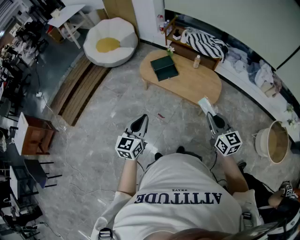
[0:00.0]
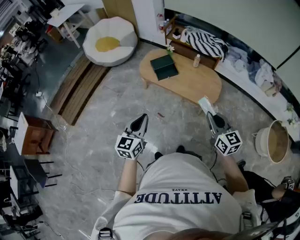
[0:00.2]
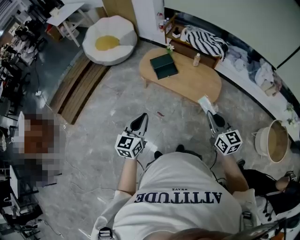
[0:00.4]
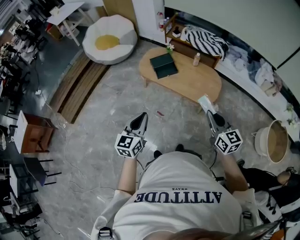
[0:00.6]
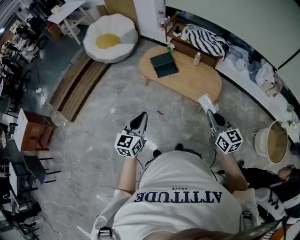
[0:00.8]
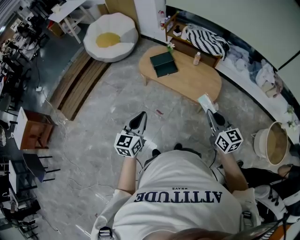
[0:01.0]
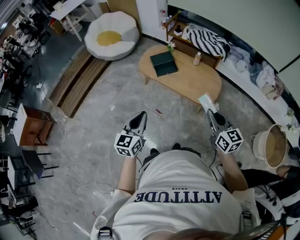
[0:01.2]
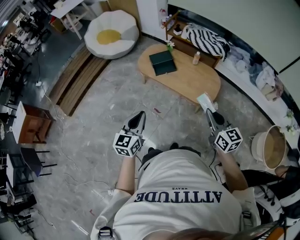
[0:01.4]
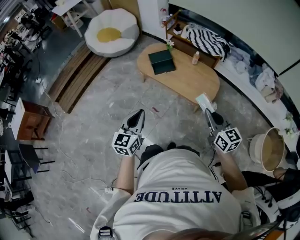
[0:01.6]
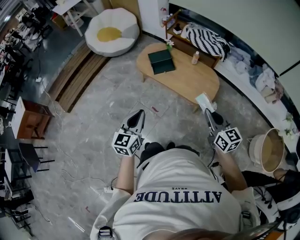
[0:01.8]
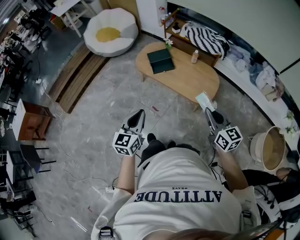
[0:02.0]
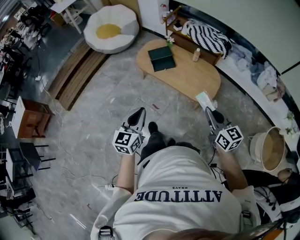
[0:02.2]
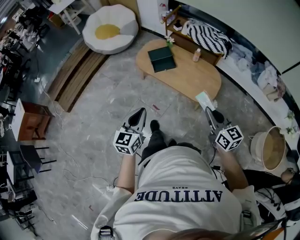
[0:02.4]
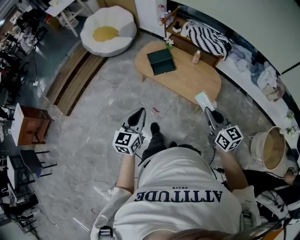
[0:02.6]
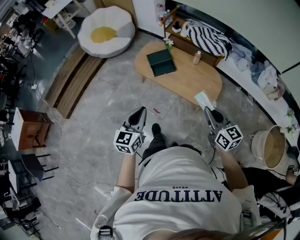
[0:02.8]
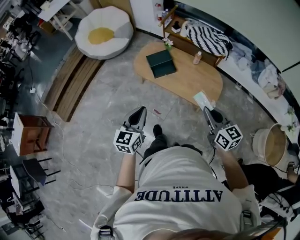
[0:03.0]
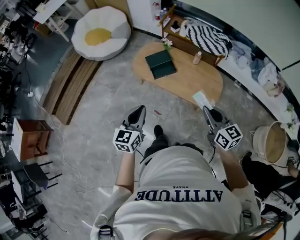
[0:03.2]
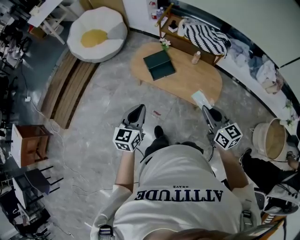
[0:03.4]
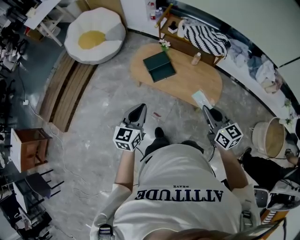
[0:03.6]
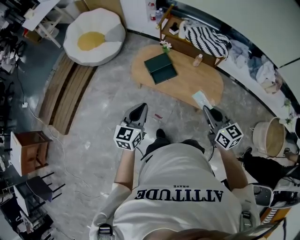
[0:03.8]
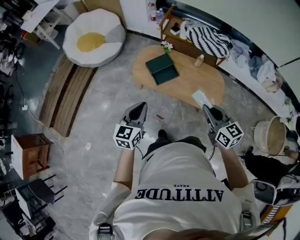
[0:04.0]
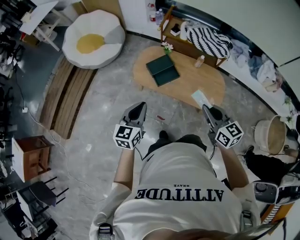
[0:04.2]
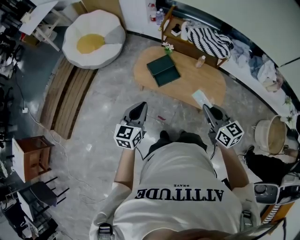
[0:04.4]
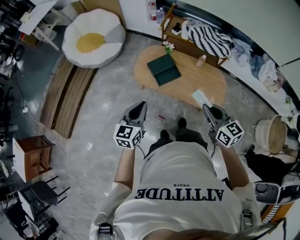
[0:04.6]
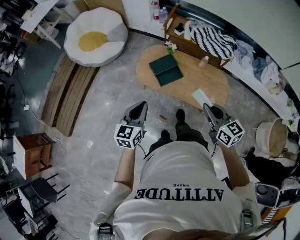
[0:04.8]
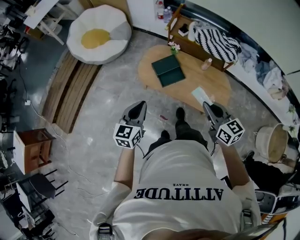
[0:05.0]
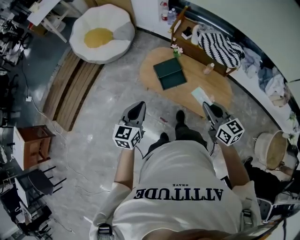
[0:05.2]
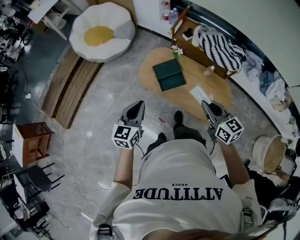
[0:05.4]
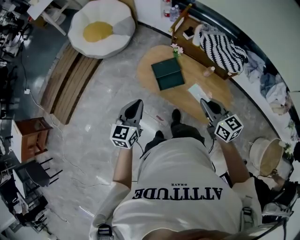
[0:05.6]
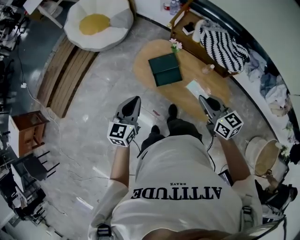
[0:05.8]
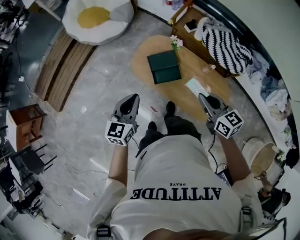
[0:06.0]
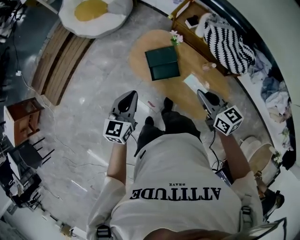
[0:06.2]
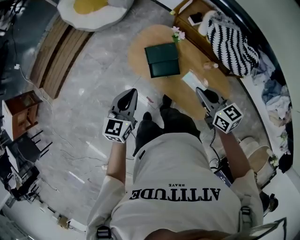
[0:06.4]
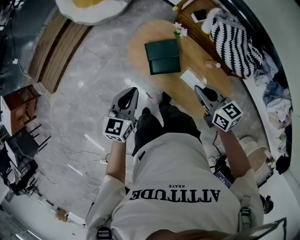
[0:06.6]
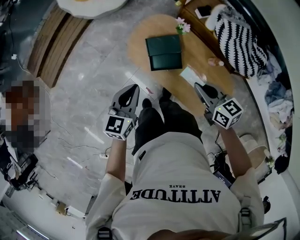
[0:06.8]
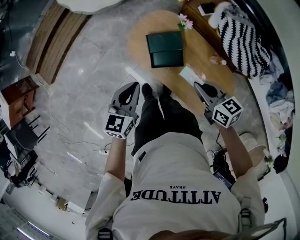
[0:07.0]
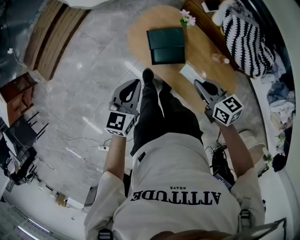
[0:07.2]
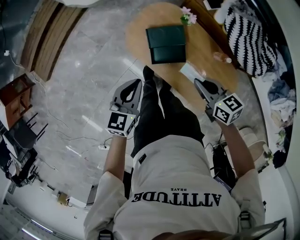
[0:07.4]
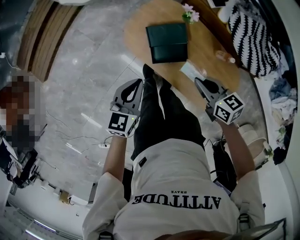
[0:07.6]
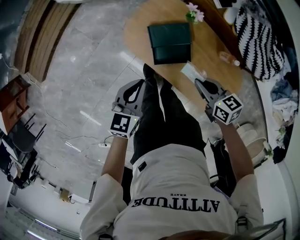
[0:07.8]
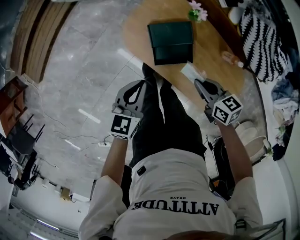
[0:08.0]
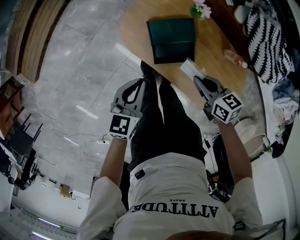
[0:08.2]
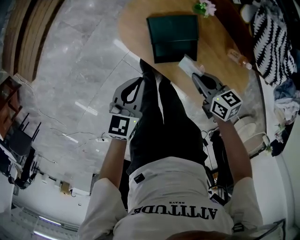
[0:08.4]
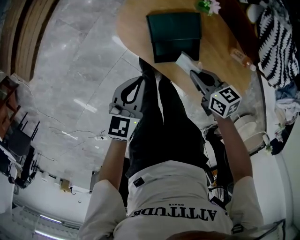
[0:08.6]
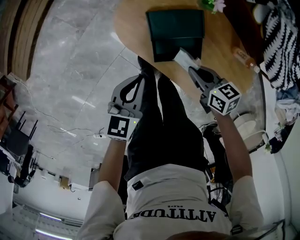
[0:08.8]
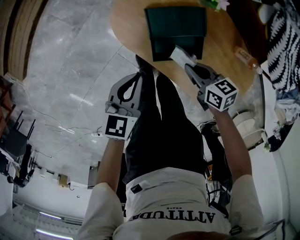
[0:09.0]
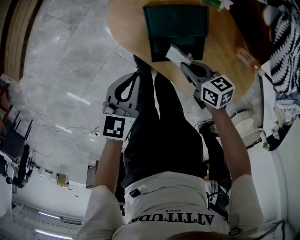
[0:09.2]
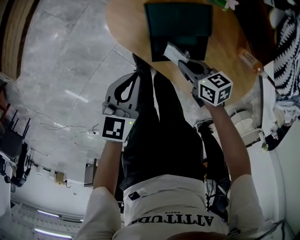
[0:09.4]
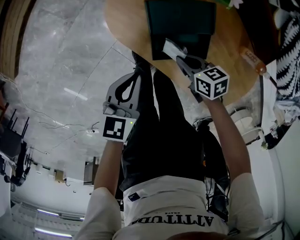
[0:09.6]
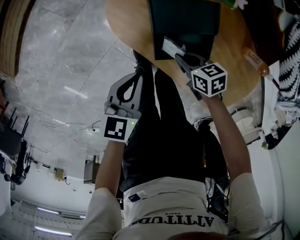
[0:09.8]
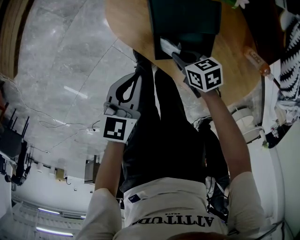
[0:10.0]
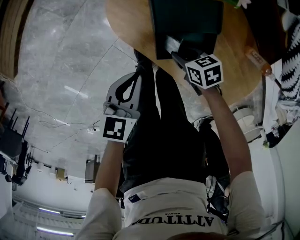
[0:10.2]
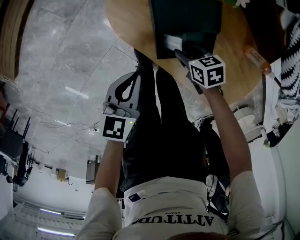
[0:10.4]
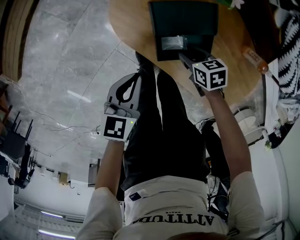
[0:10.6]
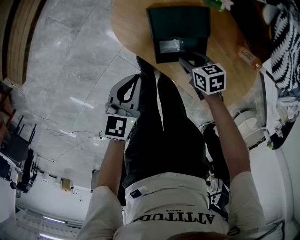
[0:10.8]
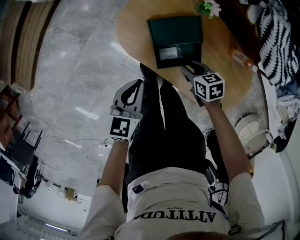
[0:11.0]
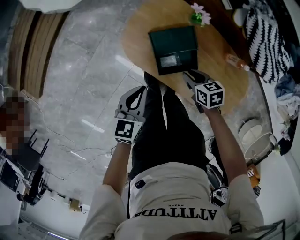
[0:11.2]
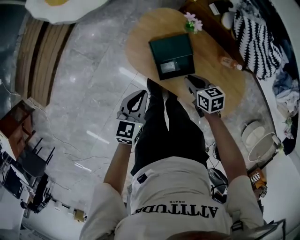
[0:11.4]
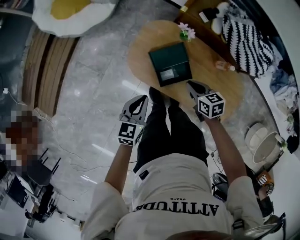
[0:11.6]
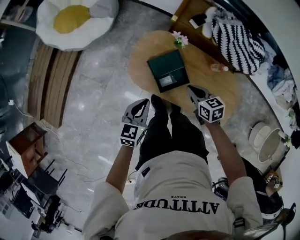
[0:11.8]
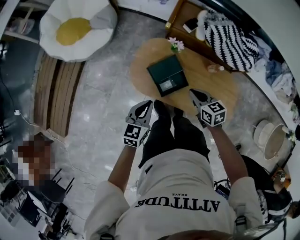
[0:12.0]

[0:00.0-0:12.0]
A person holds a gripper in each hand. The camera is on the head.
0:00.0 to 0:01.6: Both grippers travel together to the right, some 5 cm.
0:01.6 to 0:03.0: The grippers both shift forward by some 15 cm.
0:03.0 to 0:04.4: Both grippers move forward and to the left, roughly 20 cm.
0:04.4 to 0:06.0: The right gripper shifts about 25 cm forward; the left gripper goes approximately 20 cm forward and to the right.
0:06.0 to 0:07.6: The two grippers go roughly 25 cm downward and forward. The right gripper changes its angle by approximately 20 degrees.
0:07.6 to 0:09.0: Both grippers move downward, roughly 25 cm.
0:09.0 to 0:10.4: The right gripper shifts about 15 cm downward, and opens up. Meanwhile the left gripper shifts approximately 5 cm downward.
0:10.4 to 0:12.0: The grippers both shift upward by approximately 35 cm. The right gripper swivels approximately 40 degrees, and closes up. The left gripper swivels some 30 degrees.

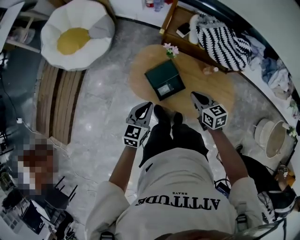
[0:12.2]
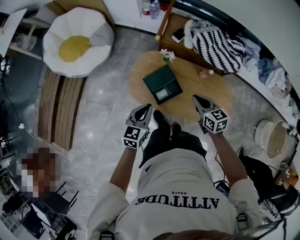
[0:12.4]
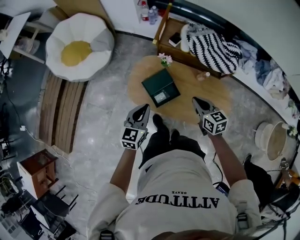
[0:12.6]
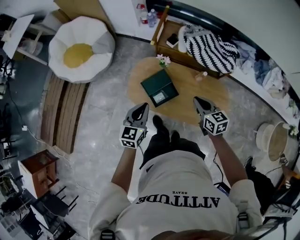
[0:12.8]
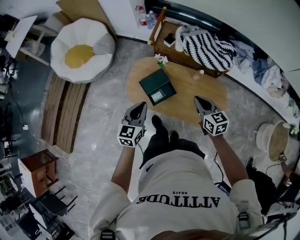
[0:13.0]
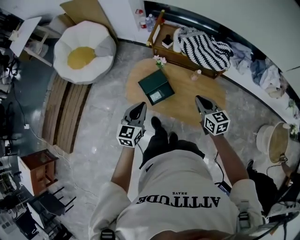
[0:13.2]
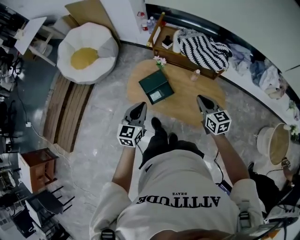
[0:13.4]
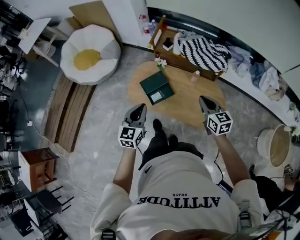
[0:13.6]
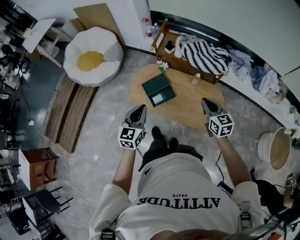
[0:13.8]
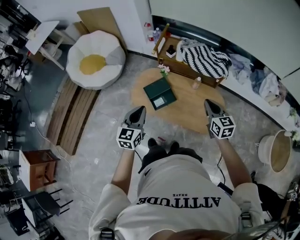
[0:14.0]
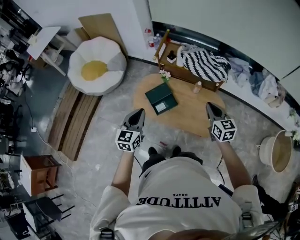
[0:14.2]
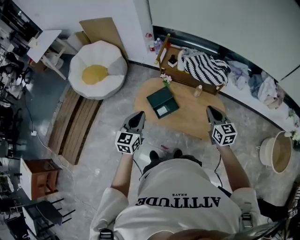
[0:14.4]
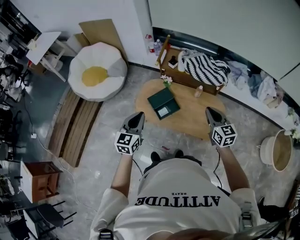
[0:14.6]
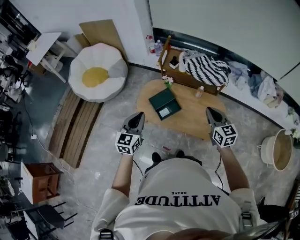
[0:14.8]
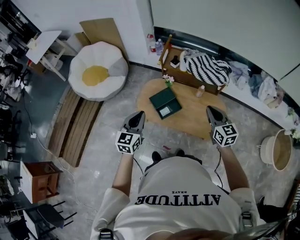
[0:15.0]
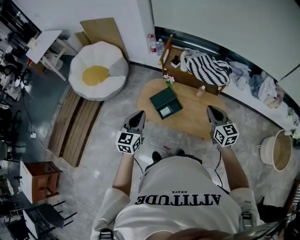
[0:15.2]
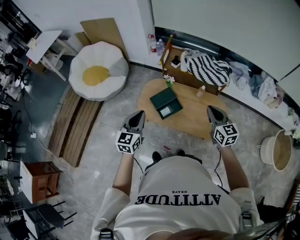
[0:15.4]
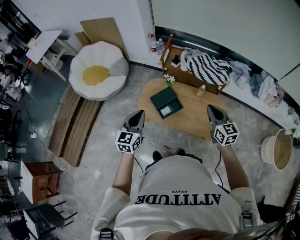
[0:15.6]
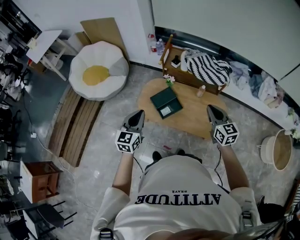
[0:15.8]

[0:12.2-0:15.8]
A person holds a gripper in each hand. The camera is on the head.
0:12.2 to 0:14.0: The right gripper is displaced backward, to the right and upward by about 30 cm, and changes its angle by approximately 20 degrees, while the left gripper goes approximately 25 cm backward and upward.
0:14.0 to 0:15.8: The right gripper moves to the left and upward, roughly 10 cm; the left gripper heads to the left, covering roughly 10 cm.

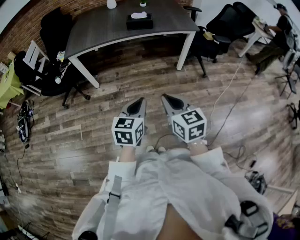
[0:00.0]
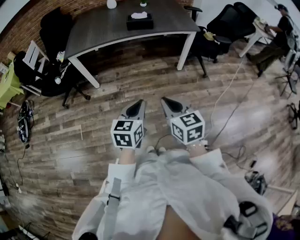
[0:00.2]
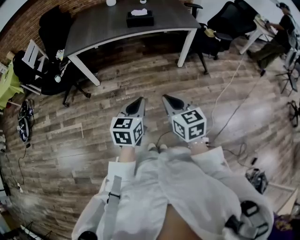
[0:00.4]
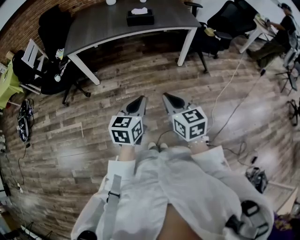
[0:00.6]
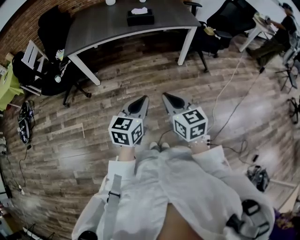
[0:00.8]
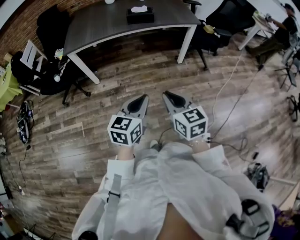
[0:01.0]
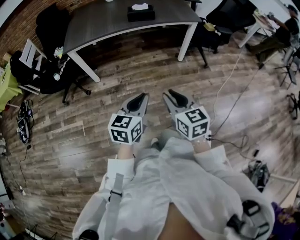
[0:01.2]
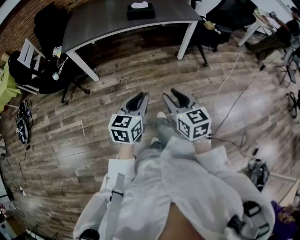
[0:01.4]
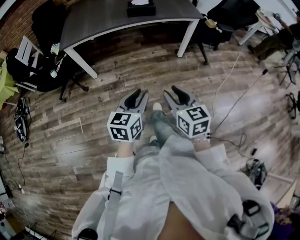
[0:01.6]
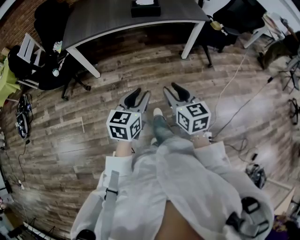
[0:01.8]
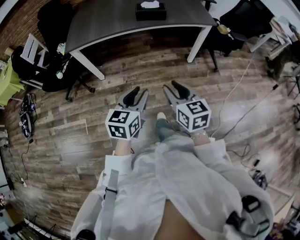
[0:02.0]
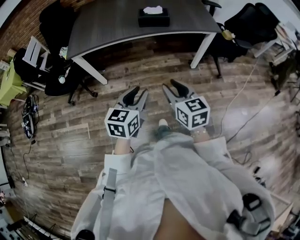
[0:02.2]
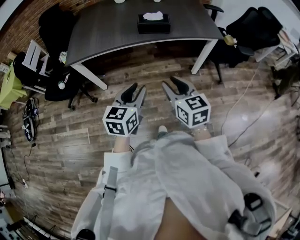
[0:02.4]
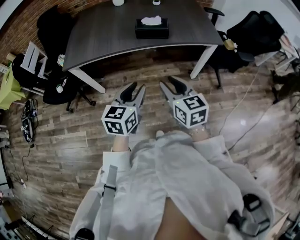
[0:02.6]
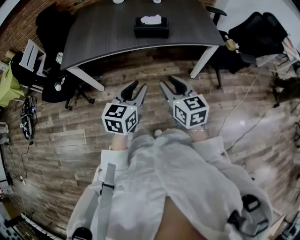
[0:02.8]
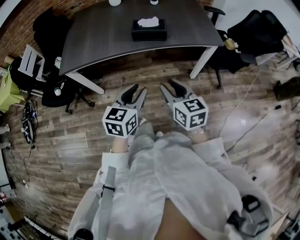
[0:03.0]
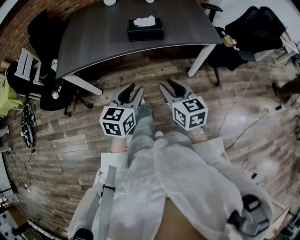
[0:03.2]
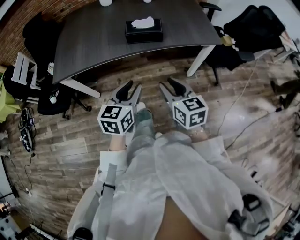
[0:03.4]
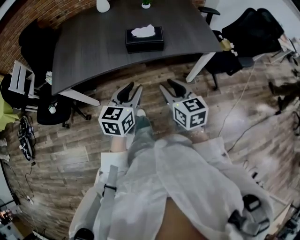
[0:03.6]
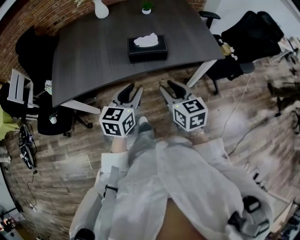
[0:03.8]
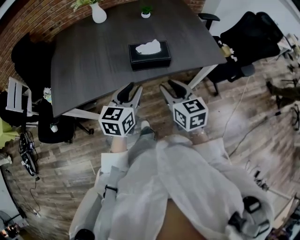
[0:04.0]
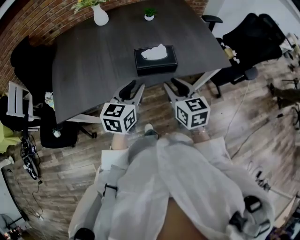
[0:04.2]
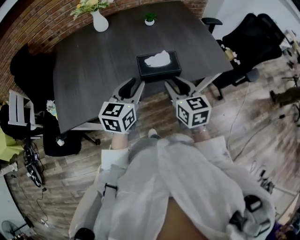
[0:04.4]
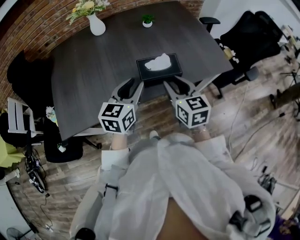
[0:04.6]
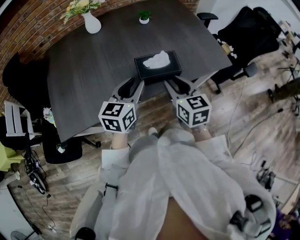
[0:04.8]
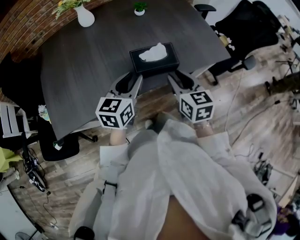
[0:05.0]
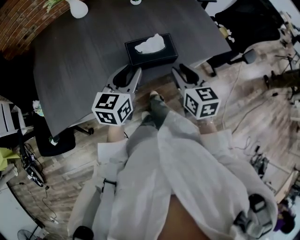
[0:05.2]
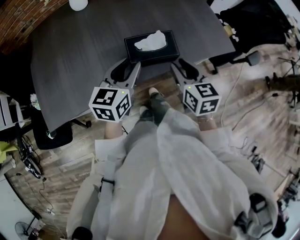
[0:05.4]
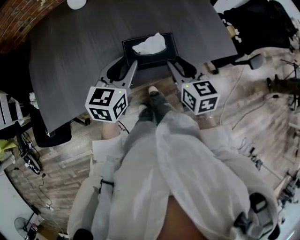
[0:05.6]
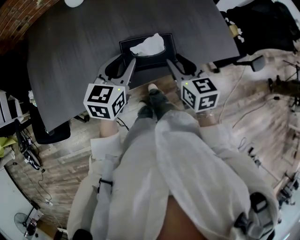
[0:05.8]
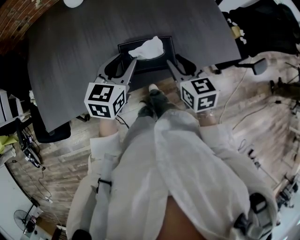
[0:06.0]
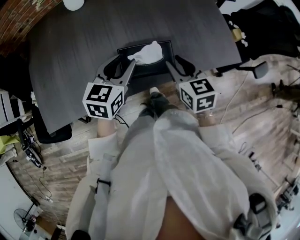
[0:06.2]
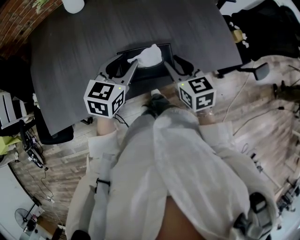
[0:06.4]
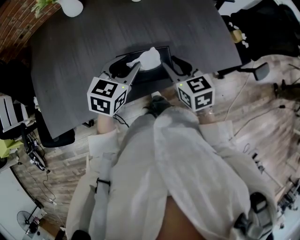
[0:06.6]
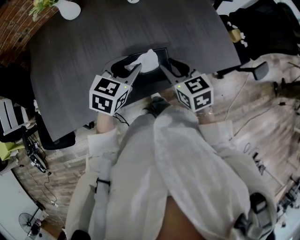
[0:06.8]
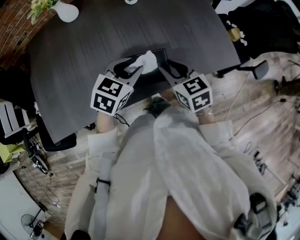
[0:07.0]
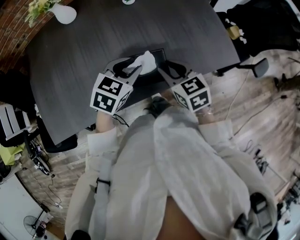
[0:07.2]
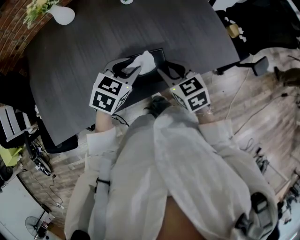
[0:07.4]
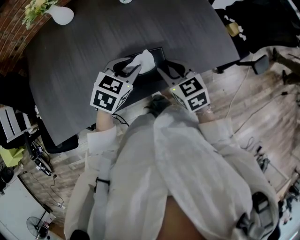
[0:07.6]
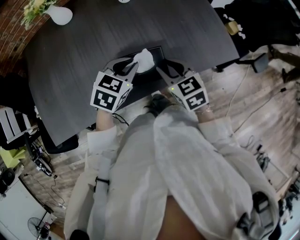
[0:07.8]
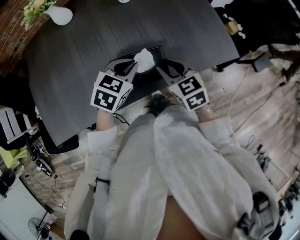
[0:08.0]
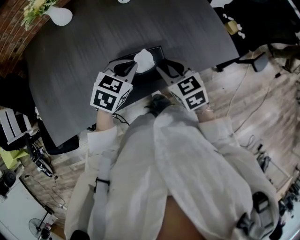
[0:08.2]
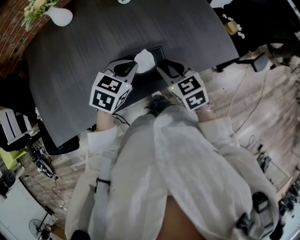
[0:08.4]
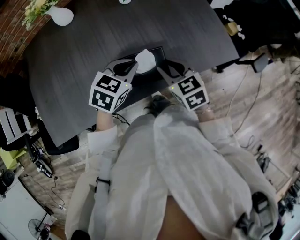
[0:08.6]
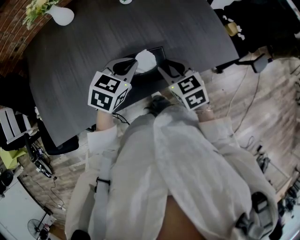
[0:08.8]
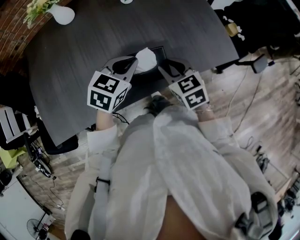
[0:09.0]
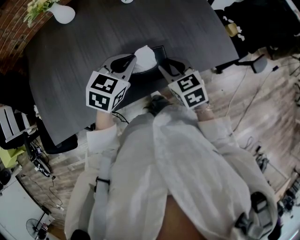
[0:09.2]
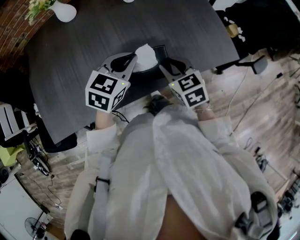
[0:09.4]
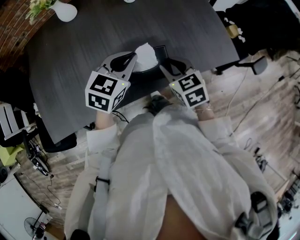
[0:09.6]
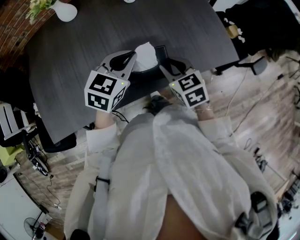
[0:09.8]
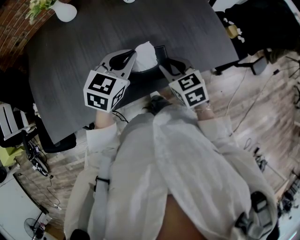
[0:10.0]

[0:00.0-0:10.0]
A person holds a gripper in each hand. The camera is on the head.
0:00.0 to 0:01.4: The right gripper opens up.
0:01.4 to 0:02.8: The grippers both shift forward by approximately 35 cm.
0:02.8 to 0:04.2: The grippers both shift forward by approximately 25 cm.
0:04.2 to 0:05.8: Both grippers travel together forward, about 15 cm.
0:05.8 to 0:07.2: The right gripper ends up roughly 5 cm from where it was; the left gripper shifts some 10 cm forward and to the right, and turns by roughly 30 degrees.
0:07.2 to 0:08.6: The left gripper closes.
0:08.6 to 0:10.0: The left gripper goes some 5 cm upward.
